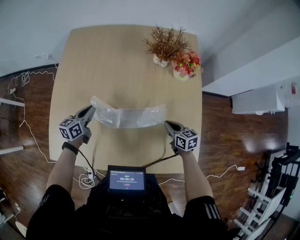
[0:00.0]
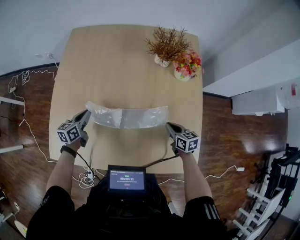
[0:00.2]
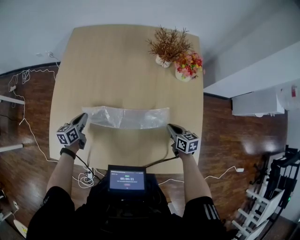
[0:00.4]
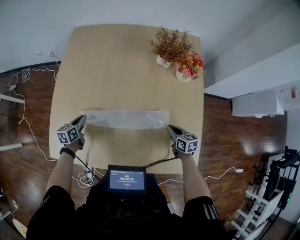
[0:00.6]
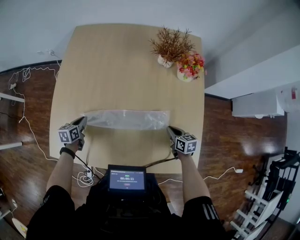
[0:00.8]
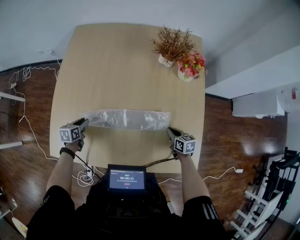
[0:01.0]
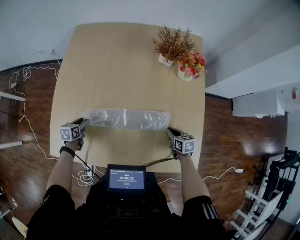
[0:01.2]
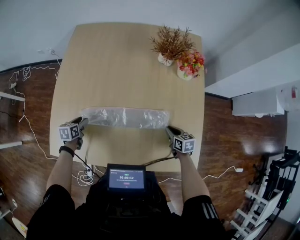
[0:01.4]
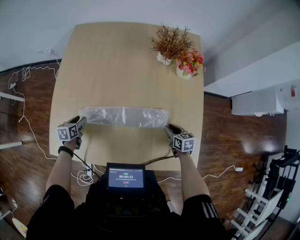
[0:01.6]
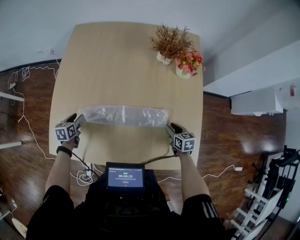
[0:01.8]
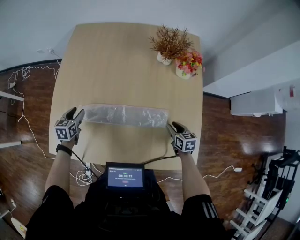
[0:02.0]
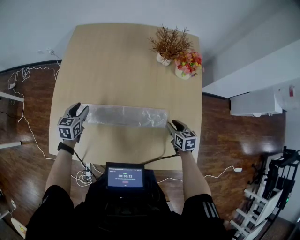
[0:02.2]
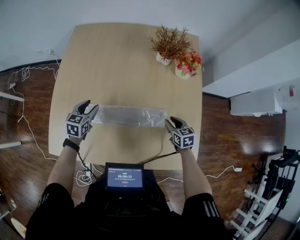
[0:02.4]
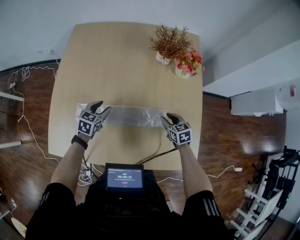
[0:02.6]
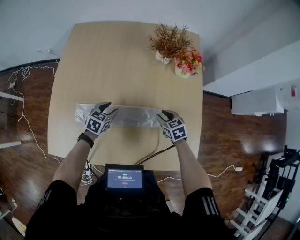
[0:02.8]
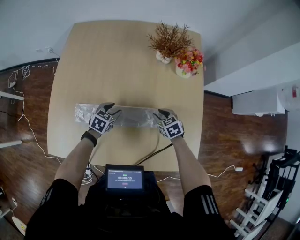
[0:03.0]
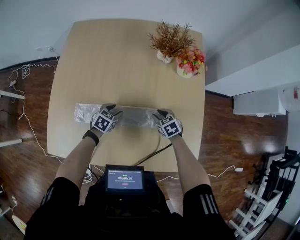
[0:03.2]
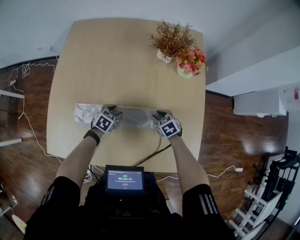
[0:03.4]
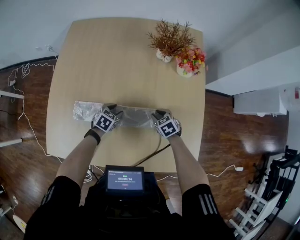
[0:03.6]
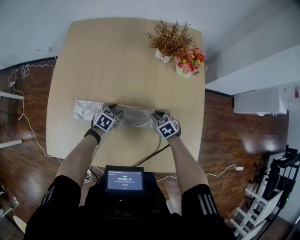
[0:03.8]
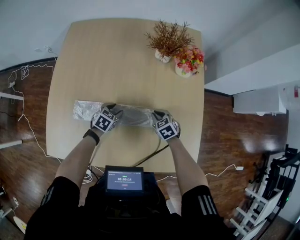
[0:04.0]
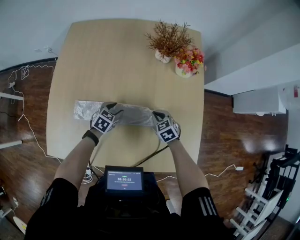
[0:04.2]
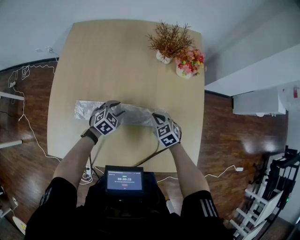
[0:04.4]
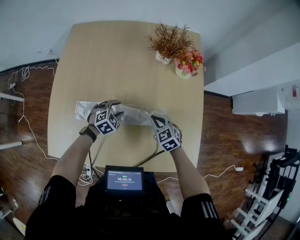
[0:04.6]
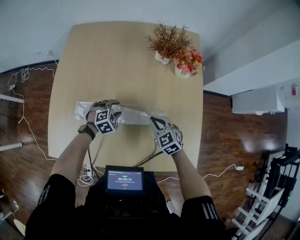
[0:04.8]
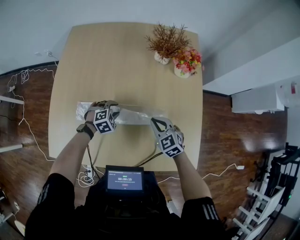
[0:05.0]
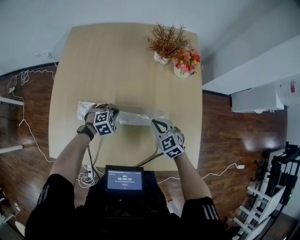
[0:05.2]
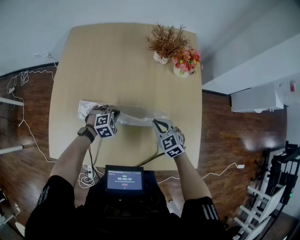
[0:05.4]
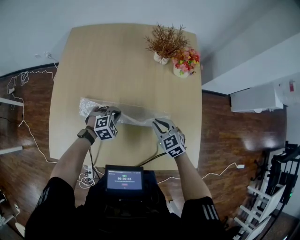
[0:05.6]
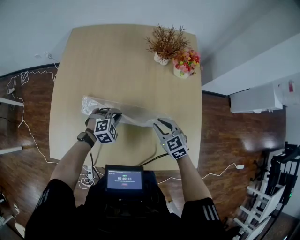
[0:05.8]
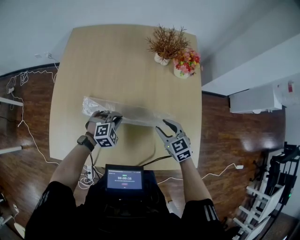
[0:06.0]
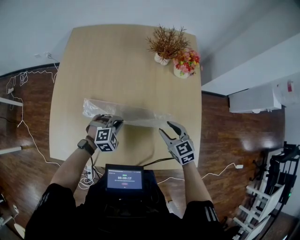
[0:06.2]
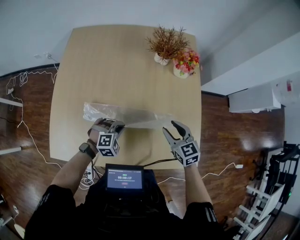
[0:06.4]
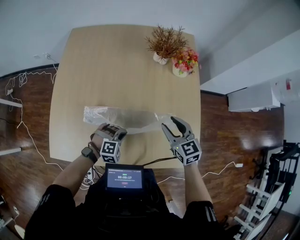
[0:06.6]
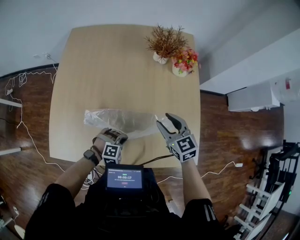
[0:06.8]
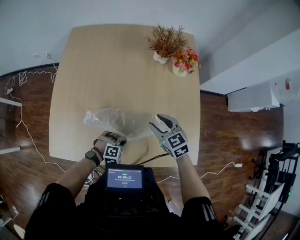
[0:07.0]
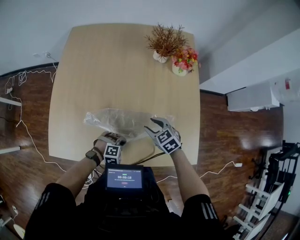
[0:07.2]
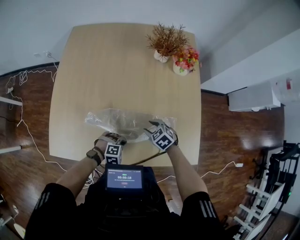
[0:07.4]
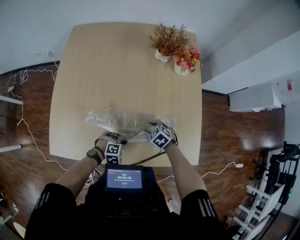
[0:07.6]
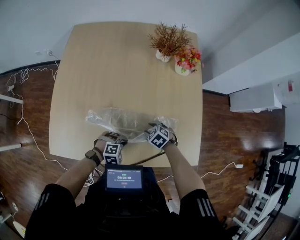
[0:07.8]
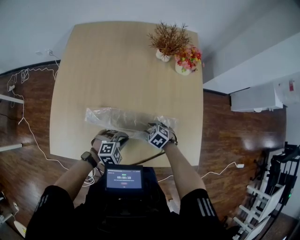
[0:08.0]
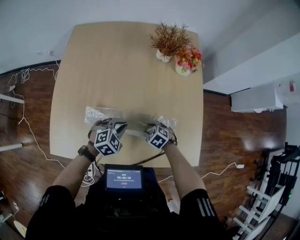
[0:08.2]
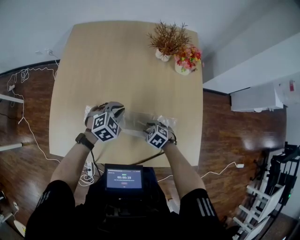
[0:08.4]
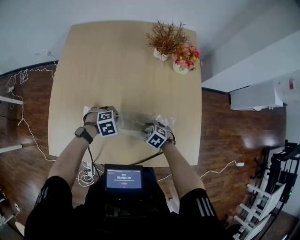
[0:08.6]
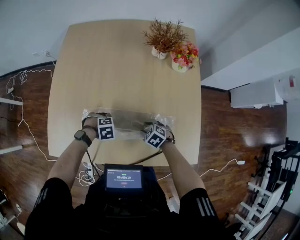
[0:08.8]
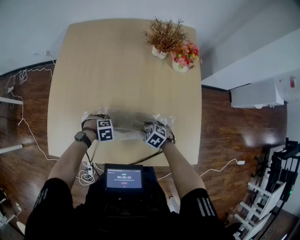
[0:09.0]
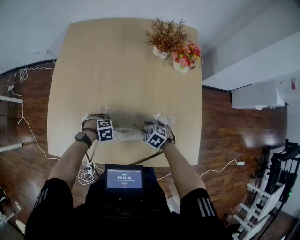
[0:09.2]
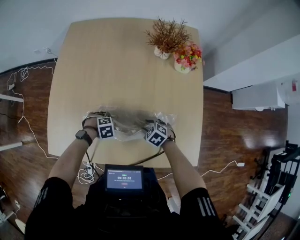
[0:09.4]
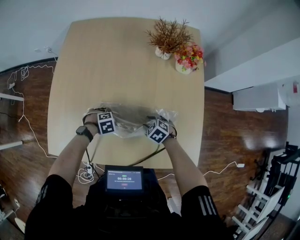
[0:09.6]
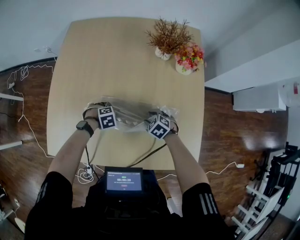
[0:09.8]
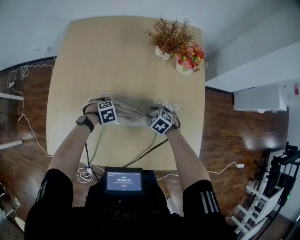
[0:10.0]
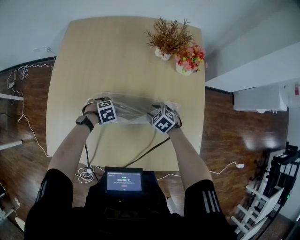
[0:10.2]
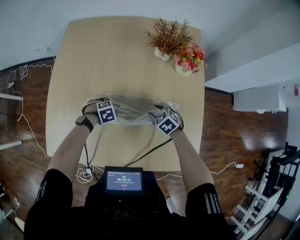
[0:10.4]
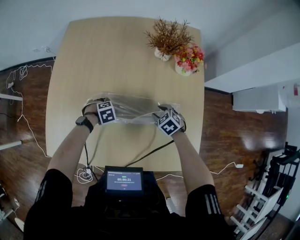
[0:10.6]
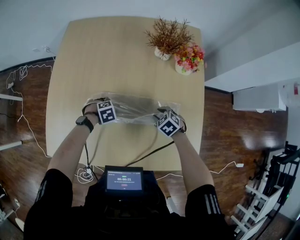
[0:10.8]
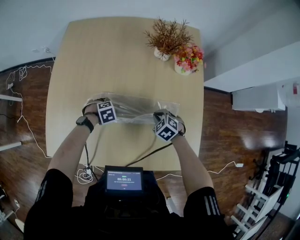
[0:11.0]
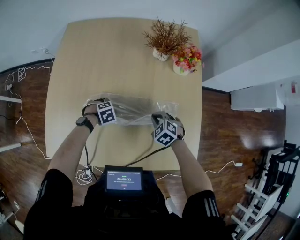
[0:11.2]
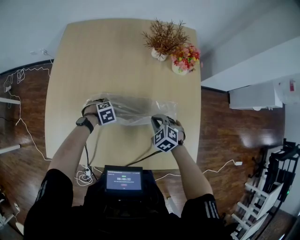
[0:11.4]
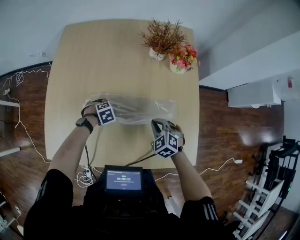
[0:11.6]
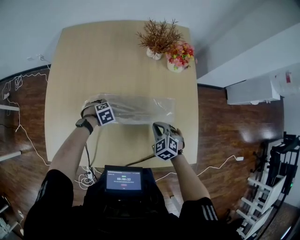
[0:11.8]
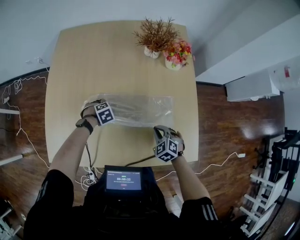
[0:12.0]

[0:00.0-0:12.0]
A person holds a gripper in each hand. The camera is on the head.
0:00.0 to 0:01.6: The right gripper goes about 5 cm downward, and opens. Meanwhile the left gripper goes approximately 15 cm to the left, downward and backward, rotates about 30 degrees, and opens up.
0:01.6 to 0:03.0: The left gripper travels to the right by about 25 cm, and changes its angle by approximately 40 degrees; the right gripper is displaced forward and to the left by some 10 cm, and rotates roughly 30 degrees.
0:03.0 to 0:04.4: The left gripper changes its angle by some 20 degrees, while the right gripper closes its fingers.
0:04.4 to 0:06.0: The left gripper moves backward, roughly 5 cm, swivels some 30 degrees, and closes its fingers. The right gripper shifts approximately 10 cm upward and backward, and opens.
0:06.0 to 0:07.6: The right gripper is displaced downward by approximately 15 cm, and swivels approximately 30 degrees. Meanwhile the left gripper ends up about 15 cm from where it was.
0:07.6 to 0:09.0: The left gripper travels upward and back again, about 10 cm each way, turns by roughly 30 degrees, and opens up.
0:09.0 to 0:10.4: The left gripper moves some 10 cm. Meanwhile the right gripper shifts by approximately 15 cm.
0:10.4 to 0:12.0: The right gripper reaches some 5 cm upward, then returns, and closes up.

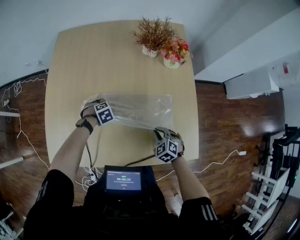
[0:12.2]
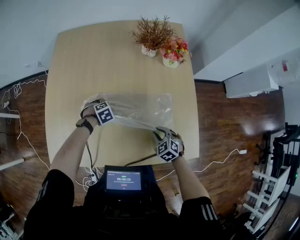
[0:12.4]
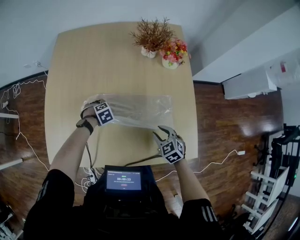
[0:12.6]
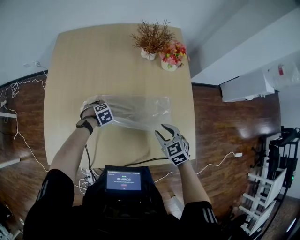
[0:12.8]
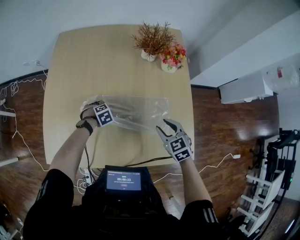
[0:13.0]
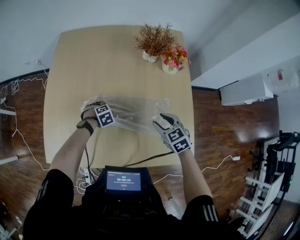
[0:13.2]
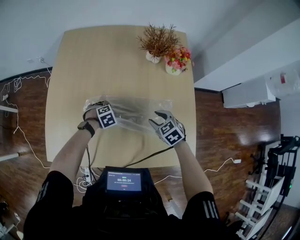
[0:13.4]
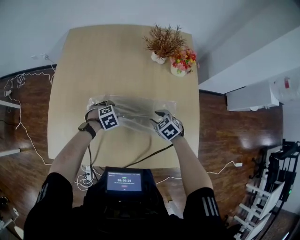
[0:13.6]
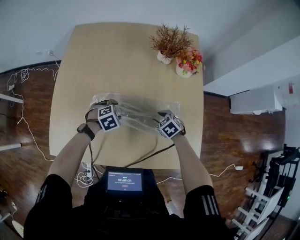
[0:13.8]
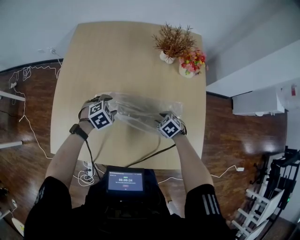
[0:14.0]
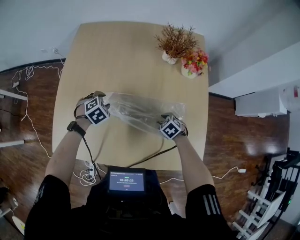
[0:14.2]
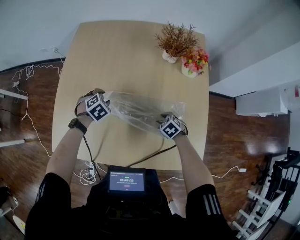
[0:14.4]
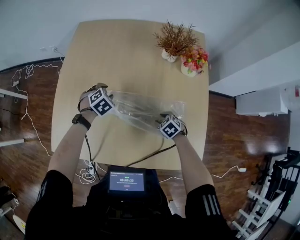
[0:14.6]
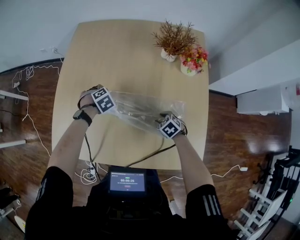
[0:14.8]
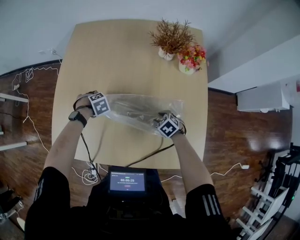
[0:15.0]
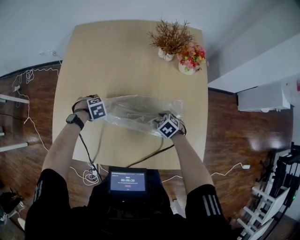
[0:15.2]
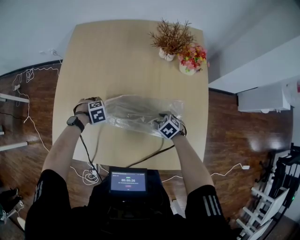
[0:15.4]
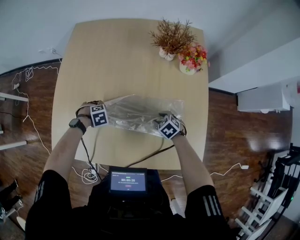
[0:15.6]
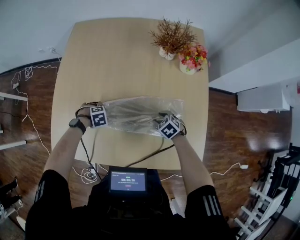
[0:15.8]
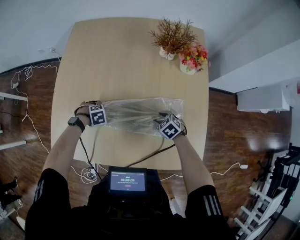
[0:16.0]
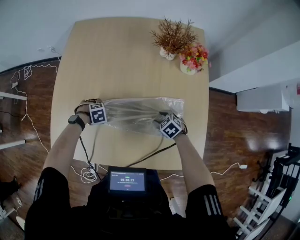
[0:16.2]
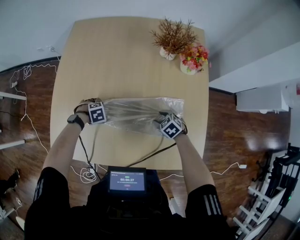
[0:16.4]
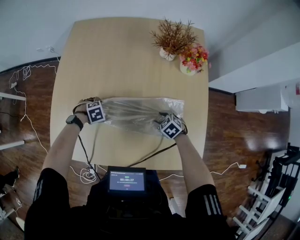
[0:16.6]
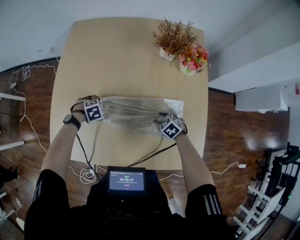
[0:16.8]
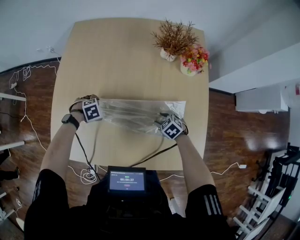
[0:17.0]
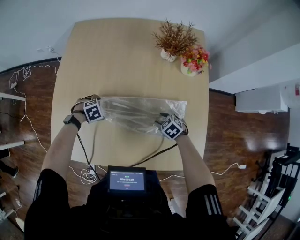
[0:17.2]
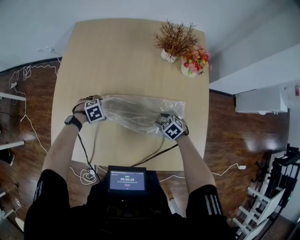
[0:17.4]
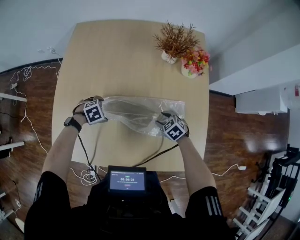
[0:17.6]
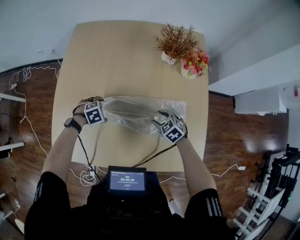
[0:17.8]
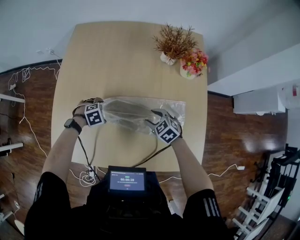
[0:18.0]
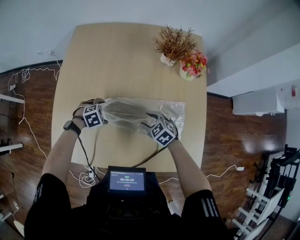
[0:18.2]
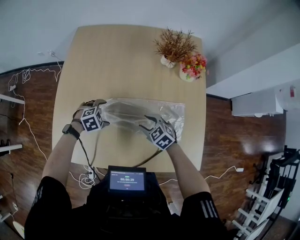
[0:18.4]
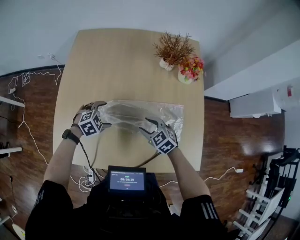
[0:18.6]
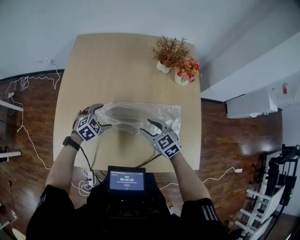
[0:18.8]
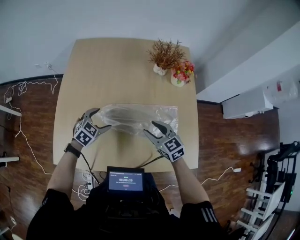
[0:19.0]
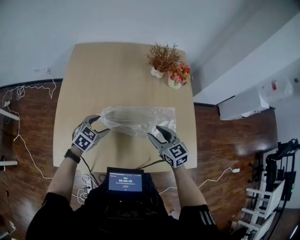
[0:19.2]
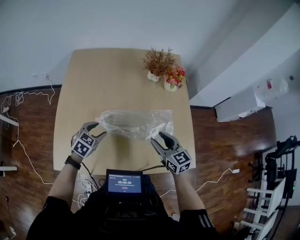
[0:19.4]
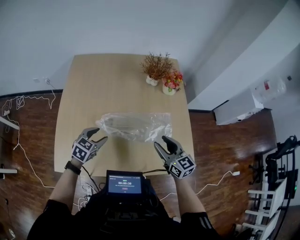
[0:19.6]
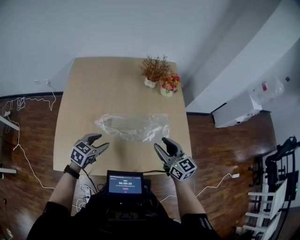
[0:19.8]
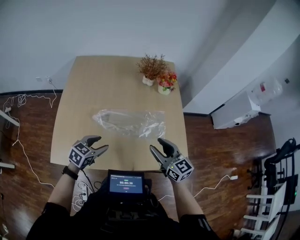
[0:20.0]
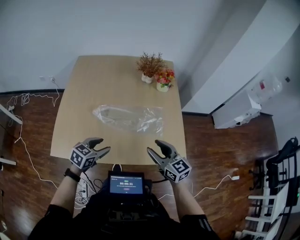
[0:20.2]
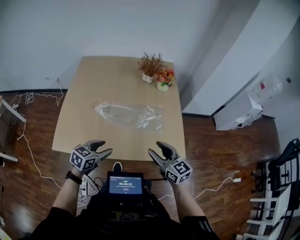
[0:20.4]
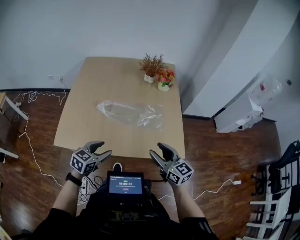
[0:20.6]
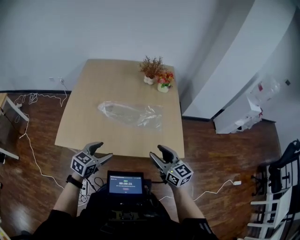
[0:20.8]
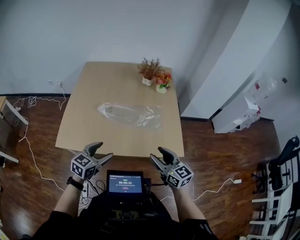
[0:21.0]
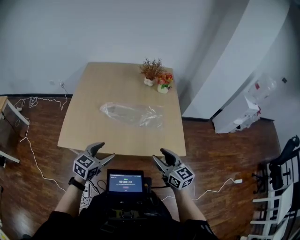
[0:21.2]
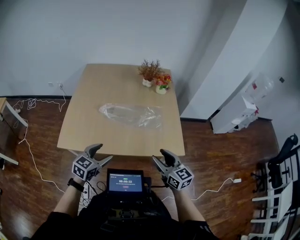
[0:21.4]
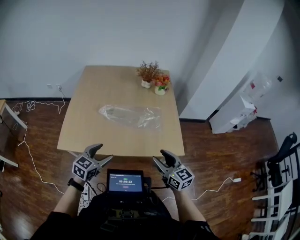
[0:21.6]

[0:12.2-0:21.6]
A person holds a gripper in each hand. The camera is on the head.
0:12.2 to 0:13.8: The left gripper shifts approximately 5 cm upward; the right gripper travels upward and back again, some 15 cm each way, and opens its fingers.
0:13.8 to 0:15.4: The left gripper shifts by approximately 10 cm.
0:15.4 to 0:17.0: The left gripper opens up.
0:17.0 to 0:18.4: The left gripper moves upward, roughly 5 cm, while the right gripper shifts by roughly 15 cm.
0:18.4 to 0:20.0: The right gripper is displaced upward, backward and to the right by some 30 cm, and points its fingers some 40 degrees further upward; the left gripper is displaced upward and backward by about 20 cm, points its fingers some 30 degrees further upward, and closes its fingers.
0:20.0 to 0:21.6: Both grippers move backward, approximately 20 cm.

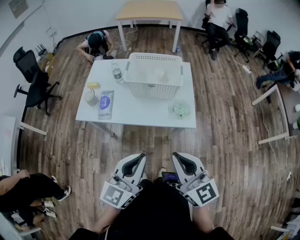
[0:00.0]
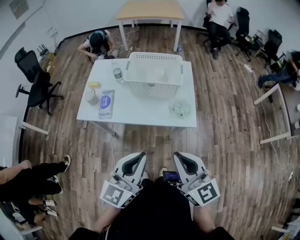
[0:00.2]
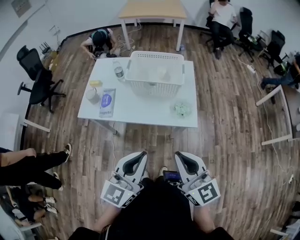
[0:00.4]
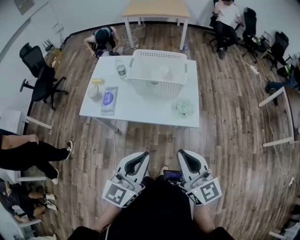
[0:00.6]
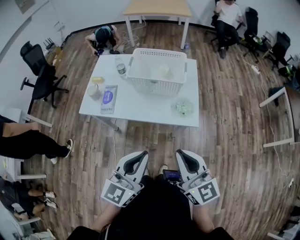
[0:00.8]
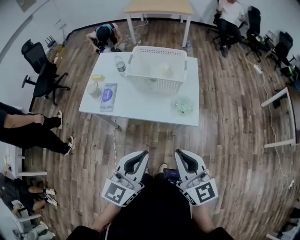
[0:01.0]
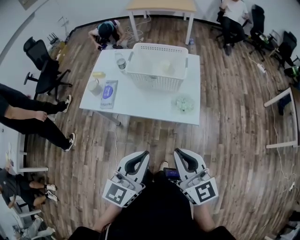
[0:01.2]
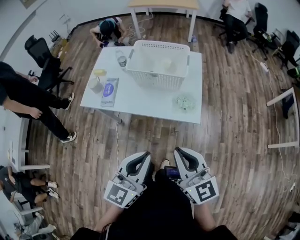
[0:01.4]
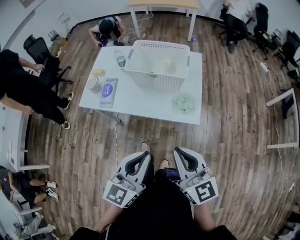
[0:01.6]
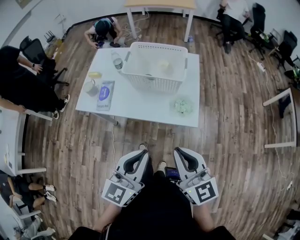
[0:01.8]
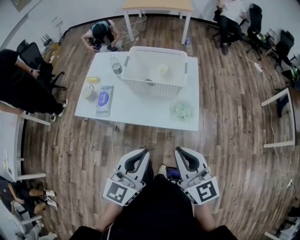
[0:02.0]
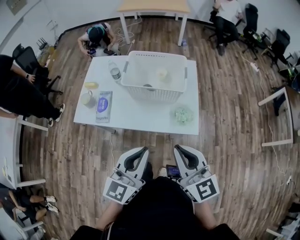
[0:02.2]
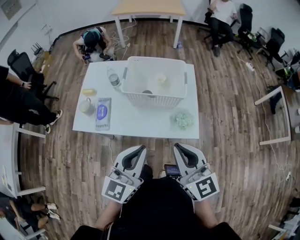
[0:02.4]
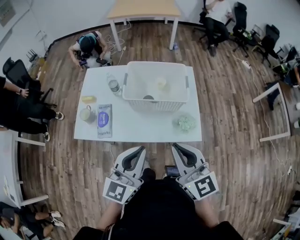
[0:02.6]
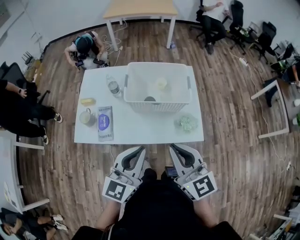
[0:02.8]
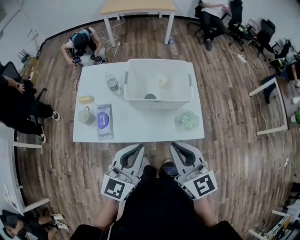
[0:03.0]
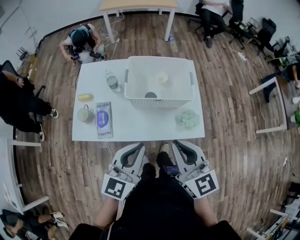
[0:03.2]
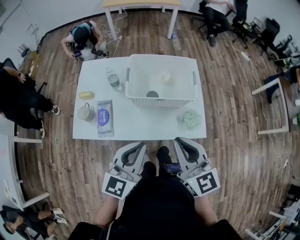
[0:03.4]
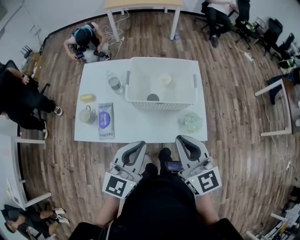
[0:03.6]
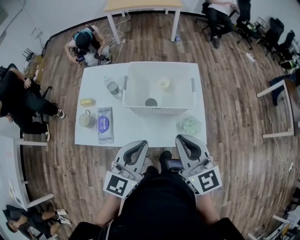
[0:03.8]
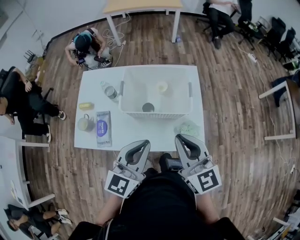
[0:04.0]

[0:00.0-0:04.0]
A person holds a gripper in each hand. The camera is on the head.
0:00.0 to 0:01.4: Both grippers travel together to the right, about 5 cm.
0:01.4 to 0:02.6: Both grippers move forward and to the left, roughly 20 cm.
0:02.6 to 0:04.0: Both grippers travel together forward, approximately 10 cm.
